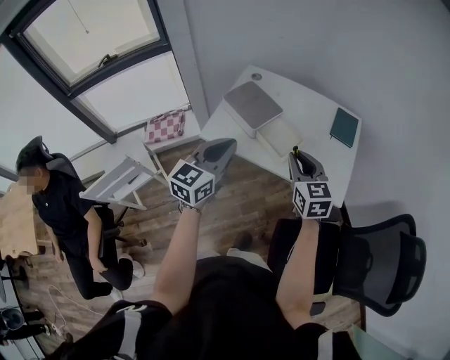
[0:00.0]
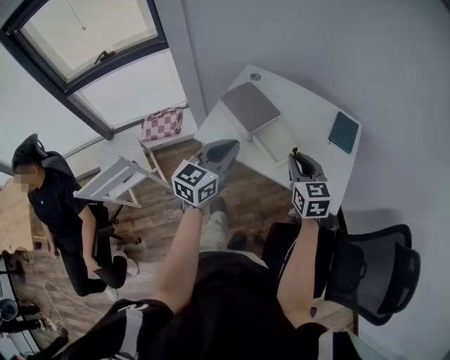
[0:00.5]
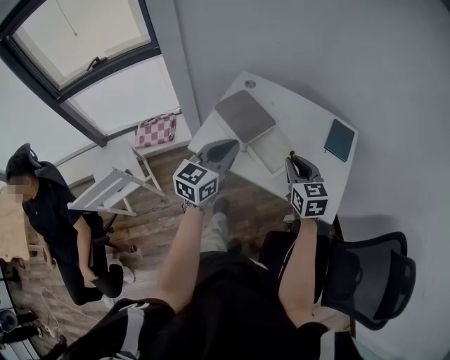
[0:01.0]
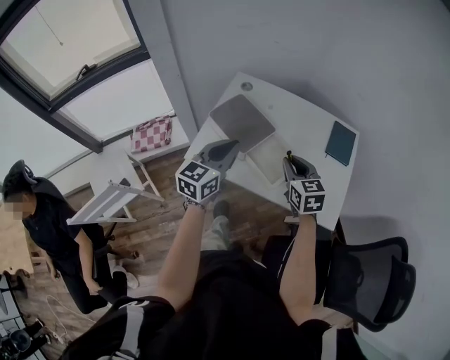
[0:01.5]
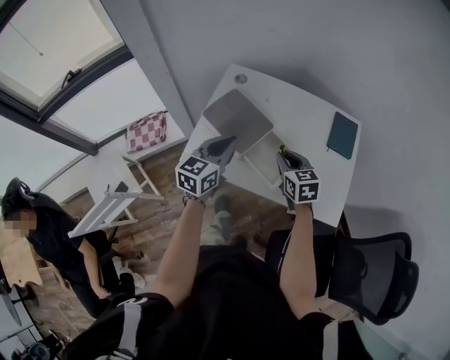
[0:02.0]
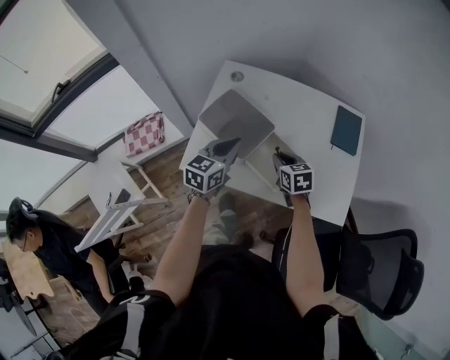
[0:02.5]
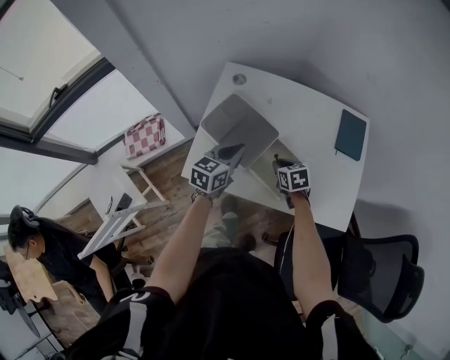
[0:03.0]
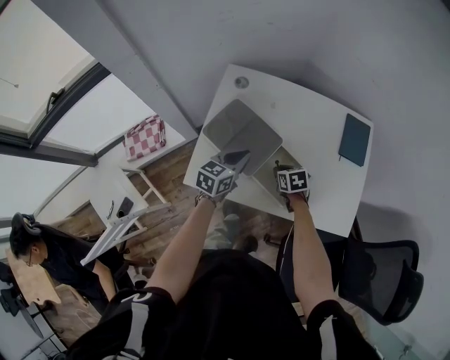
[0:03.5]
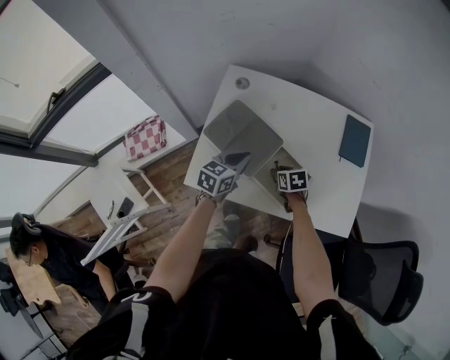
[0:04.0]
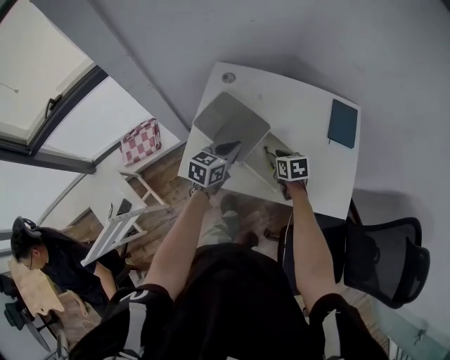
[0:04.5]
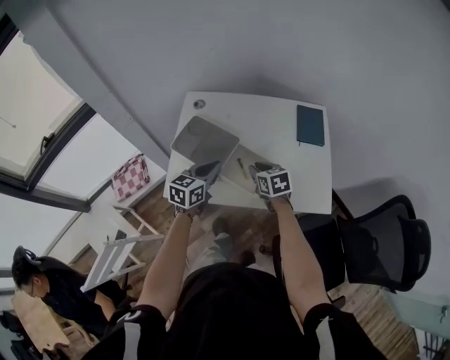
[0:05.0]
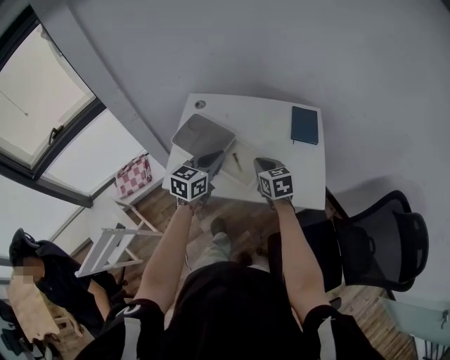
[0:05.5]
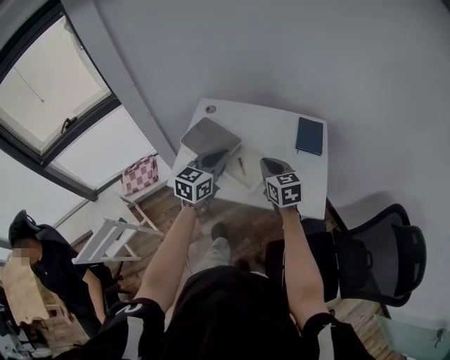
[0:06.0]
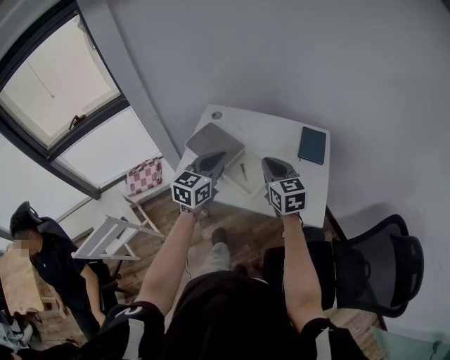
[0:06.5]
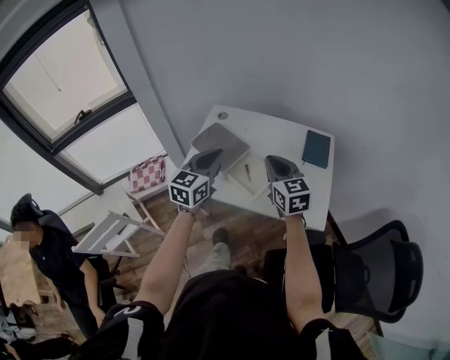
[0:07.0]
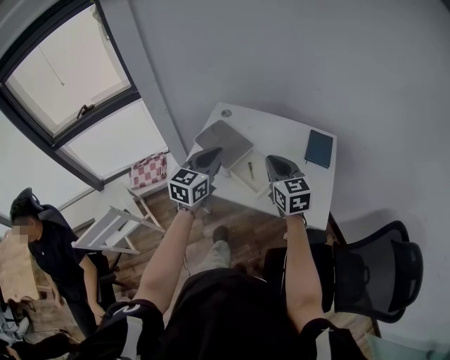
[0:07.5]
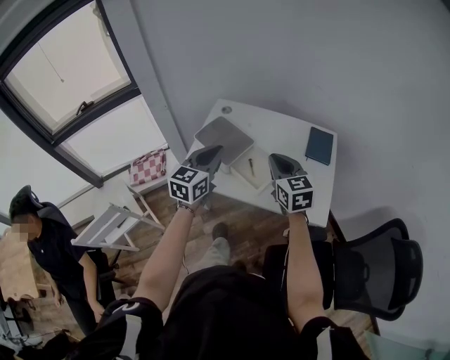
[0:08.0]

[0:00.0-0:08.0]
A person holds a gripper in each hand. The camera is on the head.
0:00.0 to 0:02.0: The two grippers go approximately 25 cm forward and downward.
0:02.0 to 0:04.0: The right gripper is displaced downward by approximately 20 cm, and rotates approximately 30 degrees, while the left gripper is displaced downward and forward by roughly 15 cm, and turns by approximately 20 degrees.
0:04.0 to 0:06.0: The right gripper moves upward and backward, approximately 30 cm, tilts its fingers roughly 30 degrees upward, and closes up; the left gripper moves upward, backward and to the right, some 25 cm, and swivels roughly 20 degrees.
0:06.0 to 0:08.0: The right gripper heads upward, covering roughly 5 cm. The left gripper travels to the left by some 5 cm.

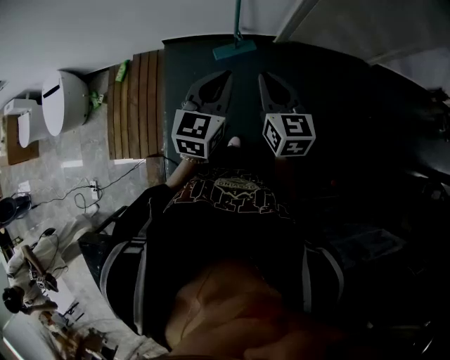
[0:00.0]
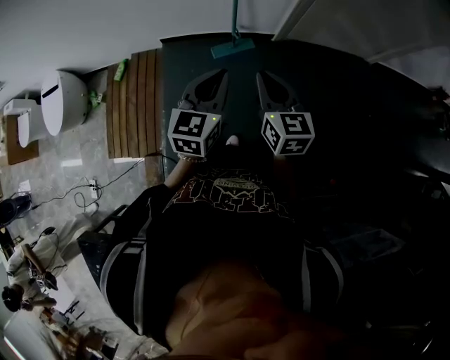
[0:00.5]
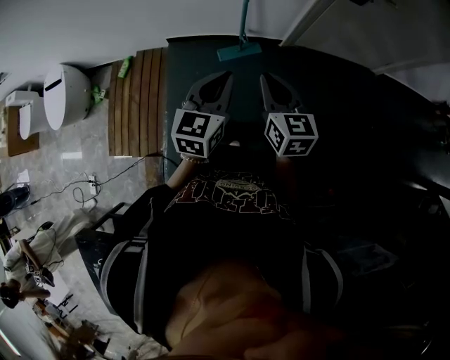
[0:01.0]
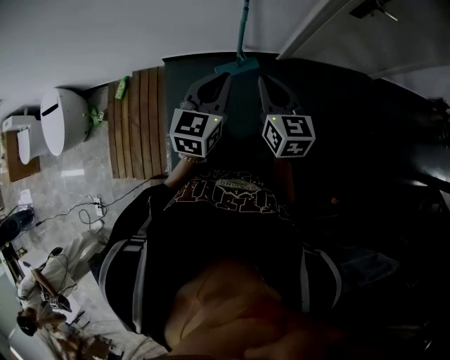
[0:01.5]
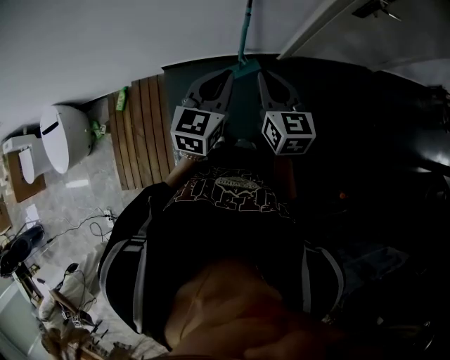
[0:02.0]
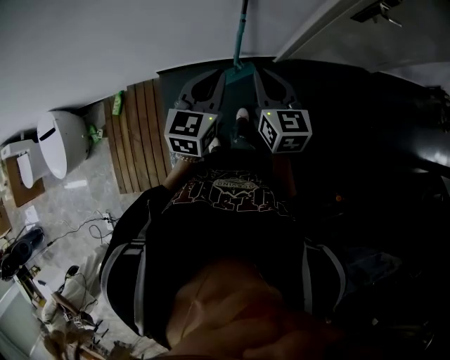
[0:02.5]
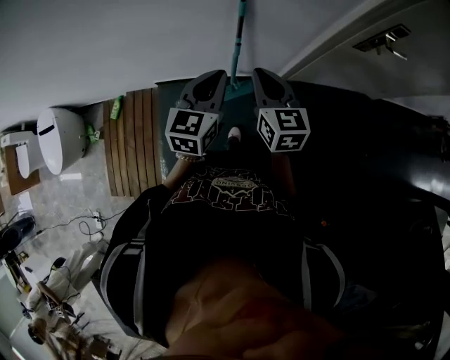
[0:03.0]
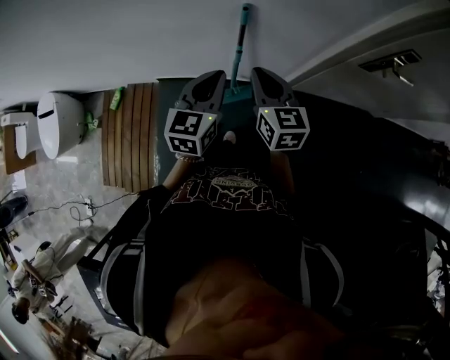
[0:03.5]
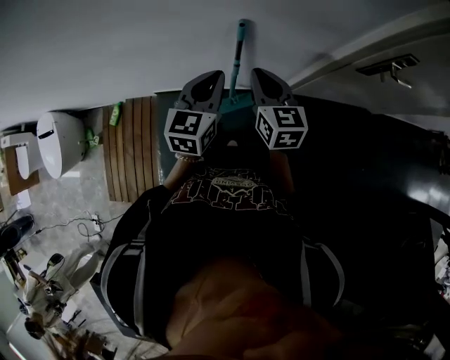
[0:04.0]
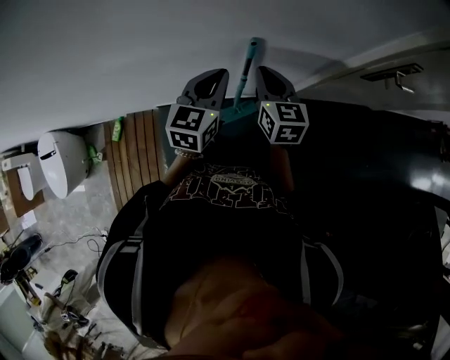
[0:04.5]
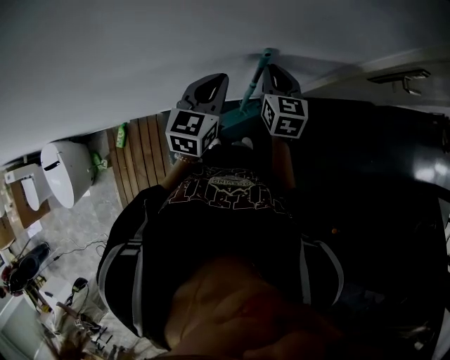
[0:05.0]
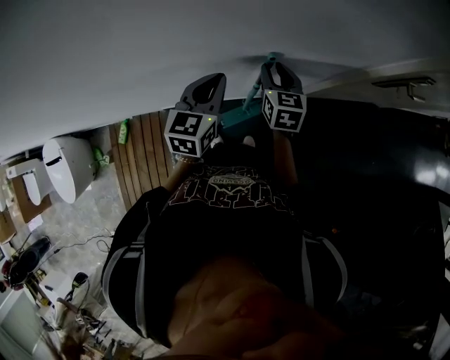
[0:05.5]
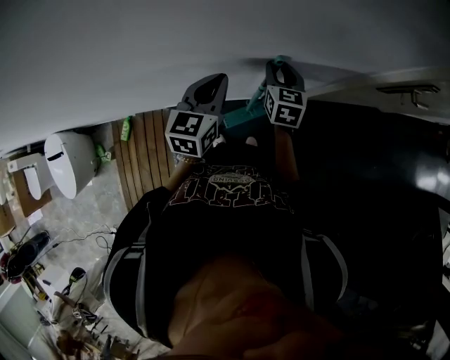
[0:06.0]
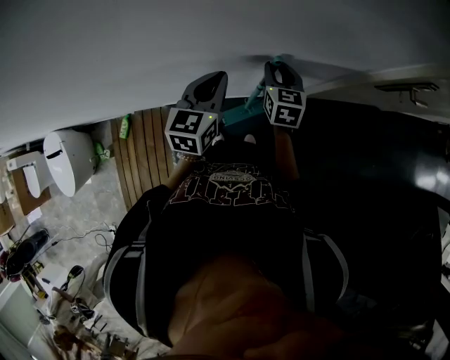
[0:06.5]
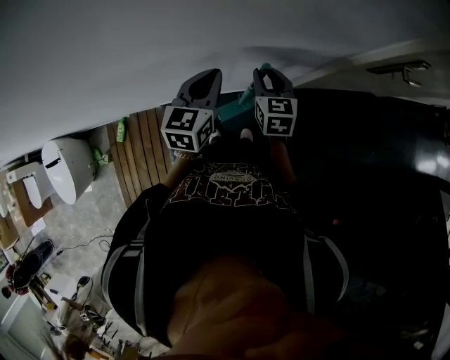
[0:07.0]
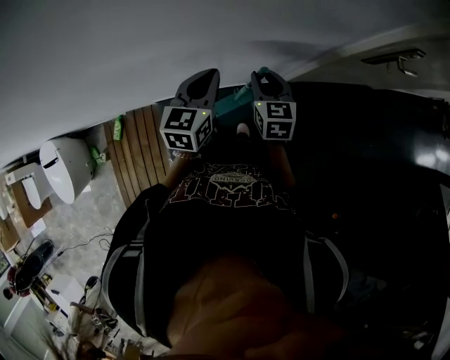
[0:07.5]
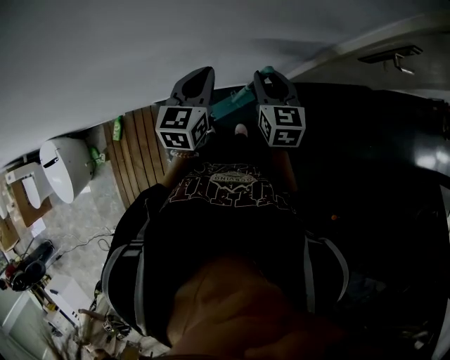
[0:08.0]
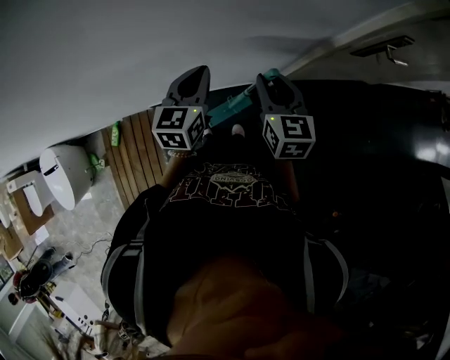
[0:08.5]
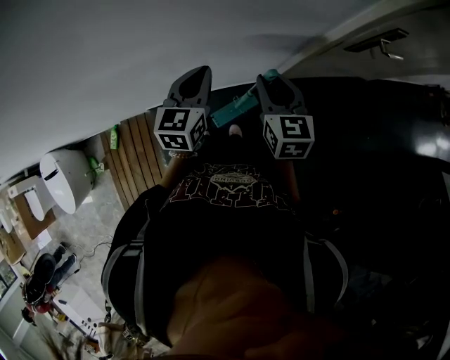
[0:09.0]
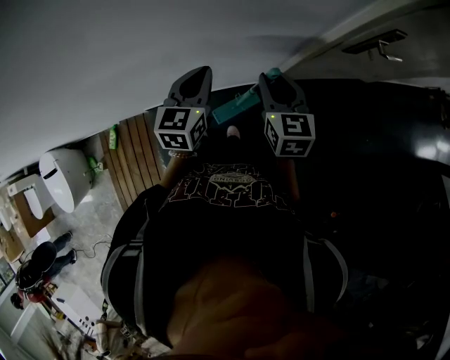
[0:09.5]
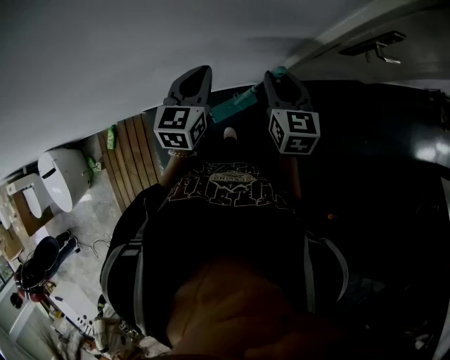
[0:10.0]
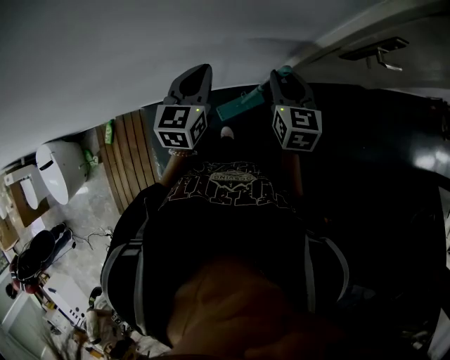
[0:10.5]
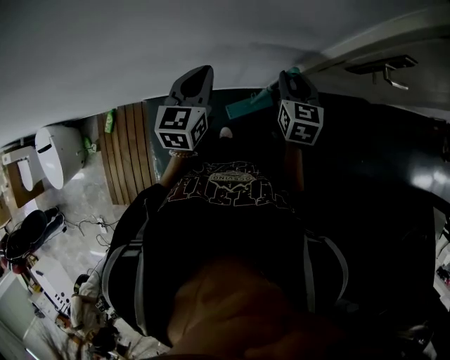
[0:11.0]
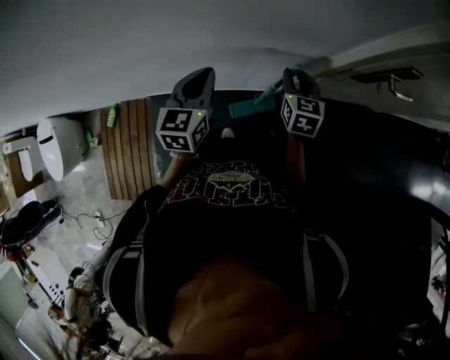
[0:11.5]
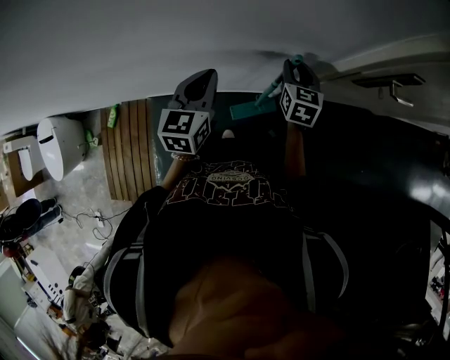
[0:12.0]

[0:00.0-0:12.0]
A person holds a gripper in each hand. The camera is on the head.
0:00.0 to 0:02.0: The left gripper heads forward, covering some 25 cm. Meanwhile the right gripper moves forward and to the left, about 25 cm.
0:02.0 to 0:04.0: The two grippers go roughly 30 cm forward.
0:04.0 to 0:06.0: The right gripper is displaced forward and downward by some 20 cm, changes its angle by some 20 degrees, and opens up, while the left gripper is displaced to the left and forward by approximately 15 cm.
0:06.0 to 0:08.0: The right gripper is displaced backward and to the right by roughly 10 cm. The left gripper heads to the right, covering roughly 5 cm.
0:08.0 to 0:10.0: The two grippers go some 10 cm to the right.
0:10.0 to 0:12.0: The right gripper goes roughly 15 cm forward and downward.

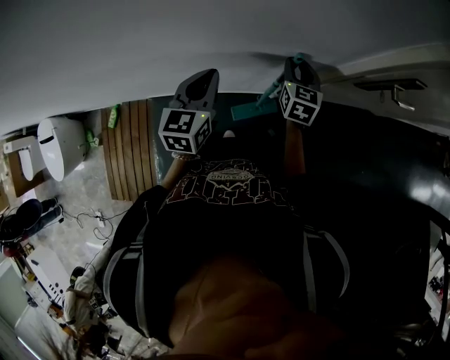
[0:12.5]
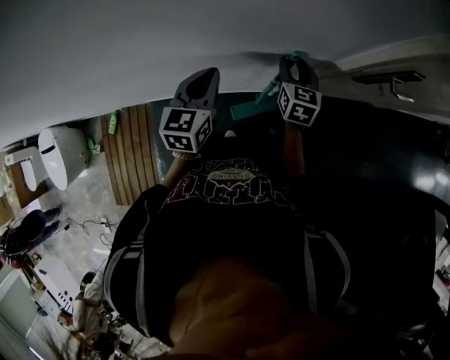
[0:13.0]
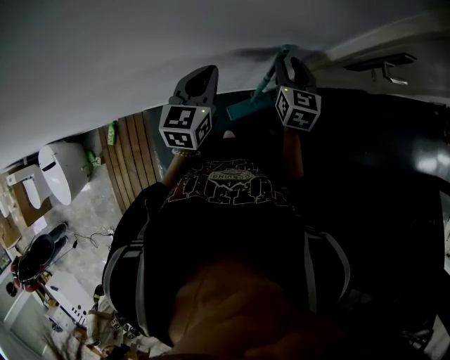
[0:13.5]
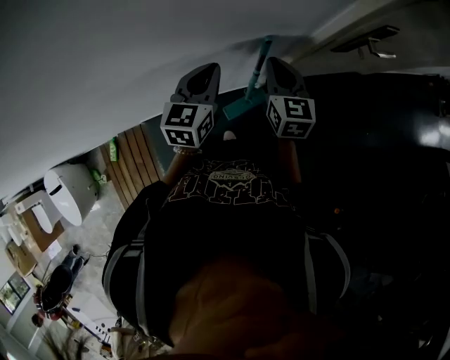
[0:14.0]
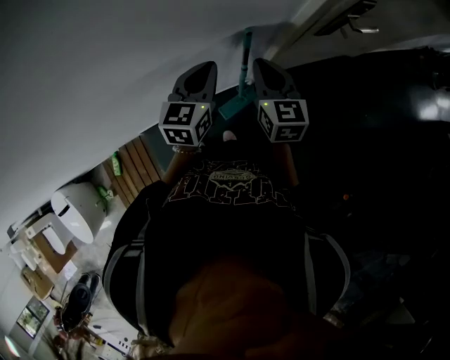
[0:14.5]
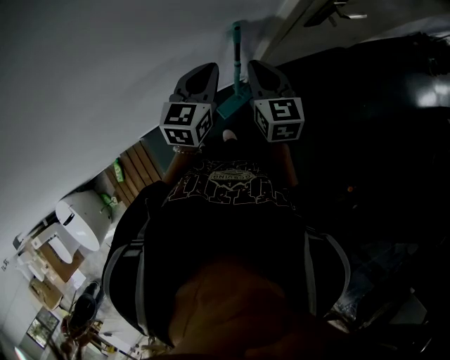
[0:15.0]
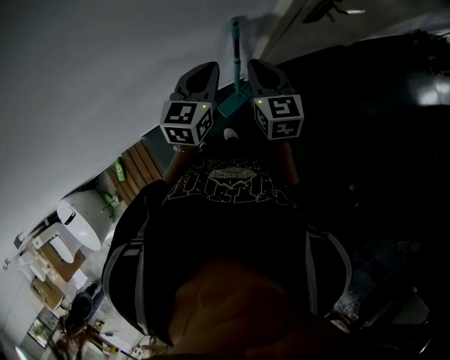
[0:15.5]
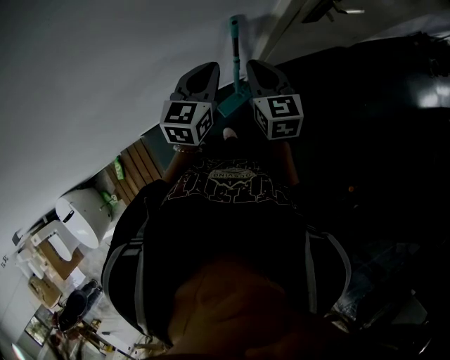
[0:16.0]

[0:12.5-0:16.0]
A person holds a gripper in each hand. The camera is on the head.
0:12.5 to 0:14.5: The left gripper shifts roughly 10 cm to the right, and turns by some 20 degrees. Meanwhile the right gripper is displaced backward and upward by about 15 cm, and closes its fingers.
0:14.5 to 0:16.0: The left gripper shifts by some 5 cm; the right gripper heads backward, covering about 5 cm.

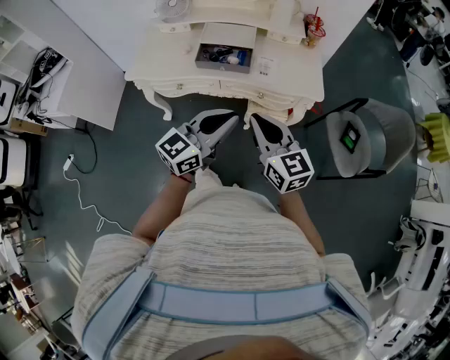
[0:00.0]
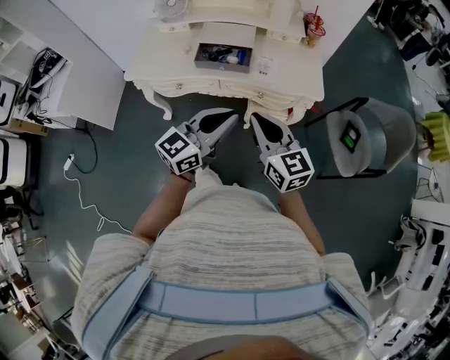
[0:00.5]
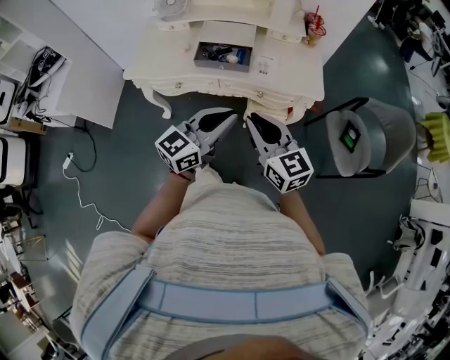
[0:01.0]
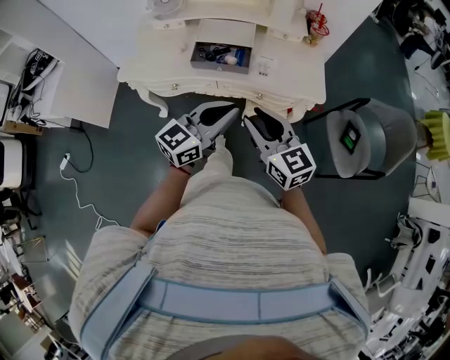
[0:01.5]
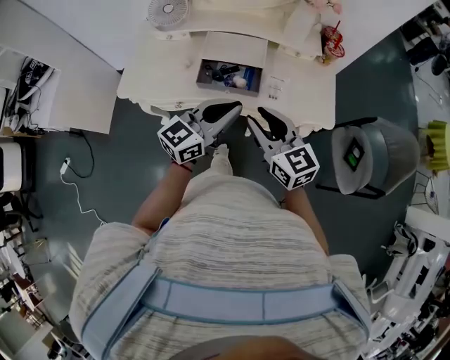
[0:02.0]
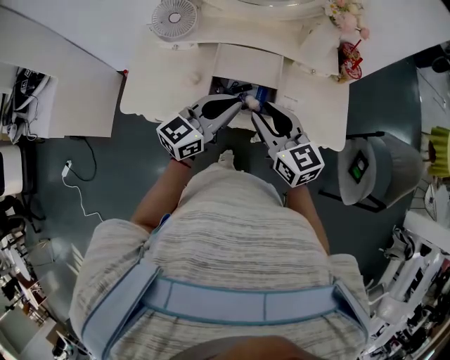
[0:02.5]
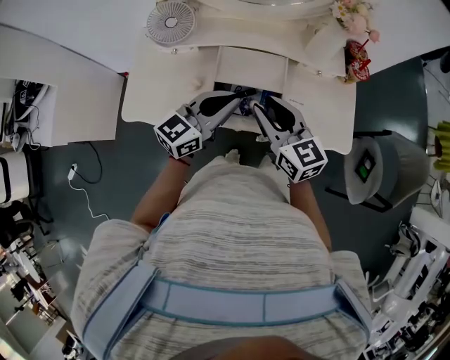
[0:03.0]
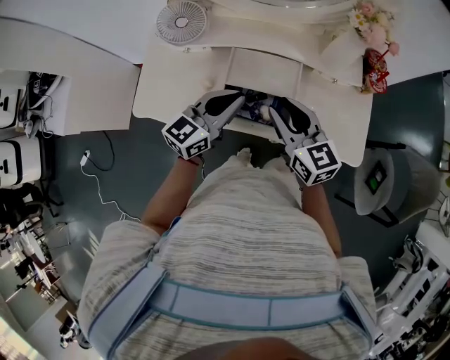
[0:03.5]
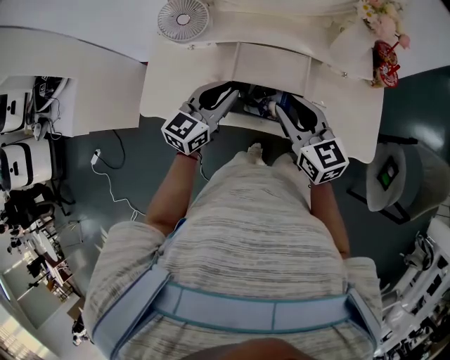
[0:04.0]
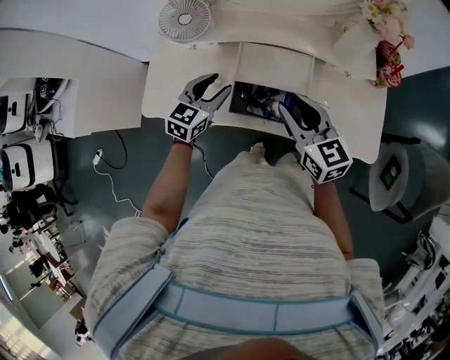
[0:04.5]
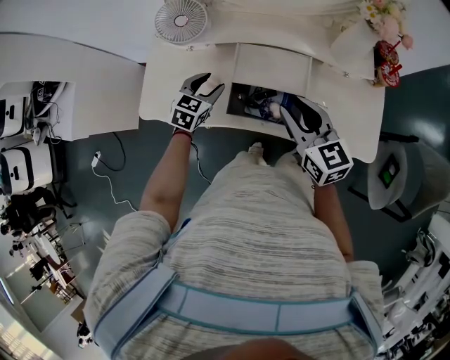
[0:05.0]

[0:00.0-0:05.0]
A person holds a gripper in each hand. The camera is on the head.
0:00.0 to 0:02.5: The grippers both shift forward and to the left by about 30 cm. The right gripper opens up.
0:02.5 to 0:05.0: The right gripper moves forward, approximately 10 cm. Meanwhile the left gripper is displaced downward, forward and to the left by roughly 25 cm, points its fingers approximately 40 degrees further downward, and opens up.
